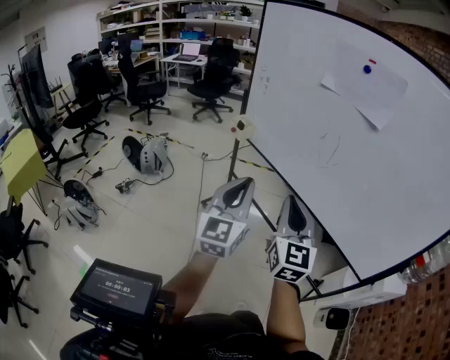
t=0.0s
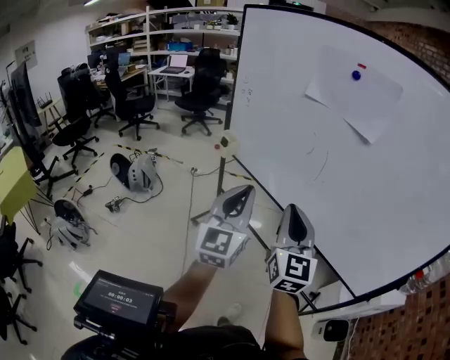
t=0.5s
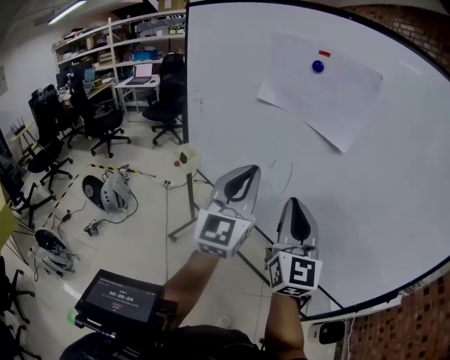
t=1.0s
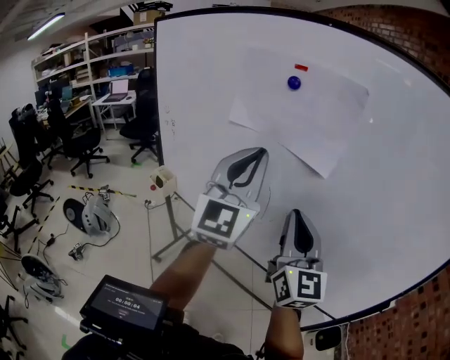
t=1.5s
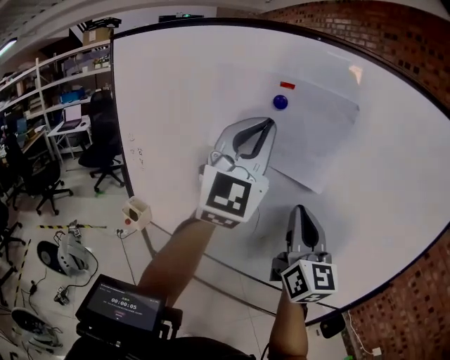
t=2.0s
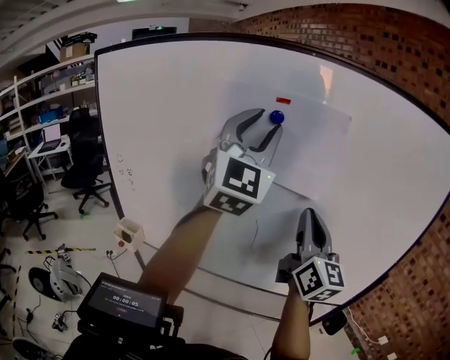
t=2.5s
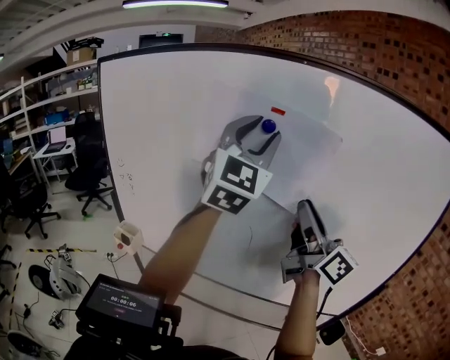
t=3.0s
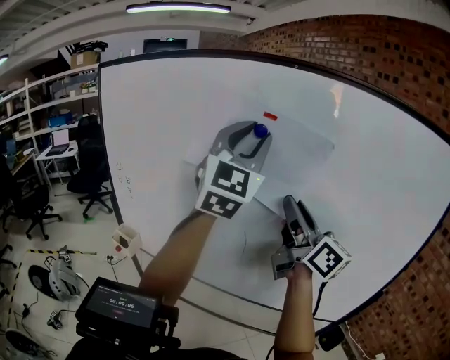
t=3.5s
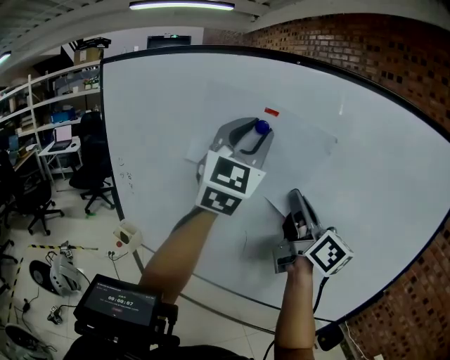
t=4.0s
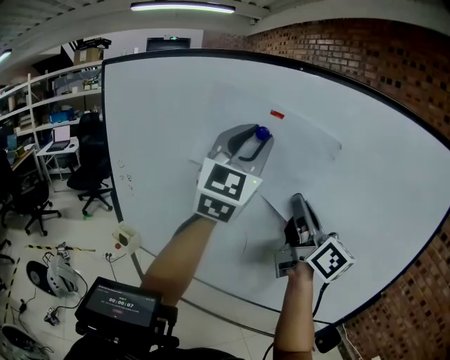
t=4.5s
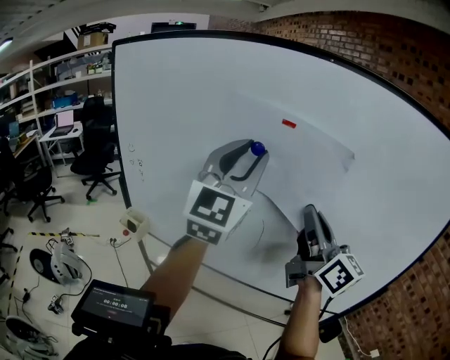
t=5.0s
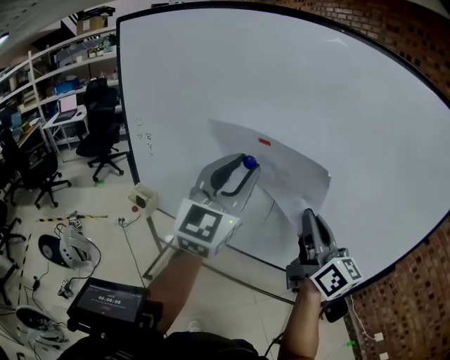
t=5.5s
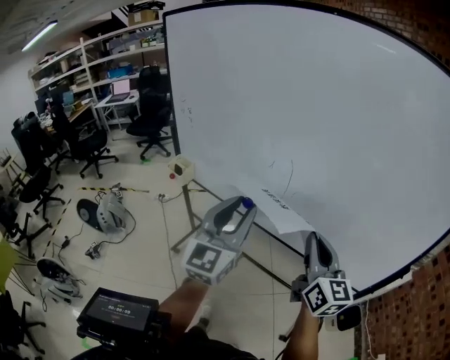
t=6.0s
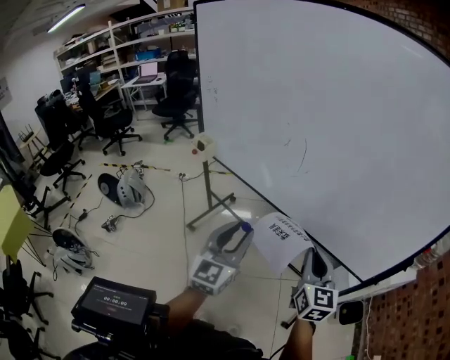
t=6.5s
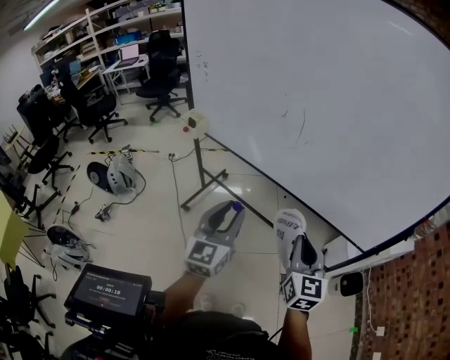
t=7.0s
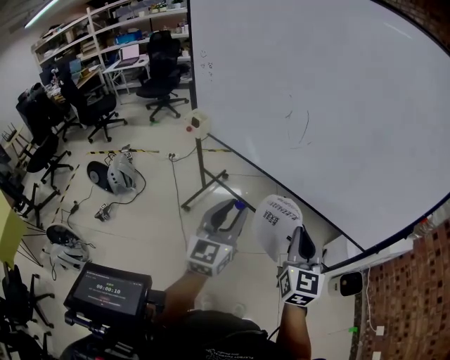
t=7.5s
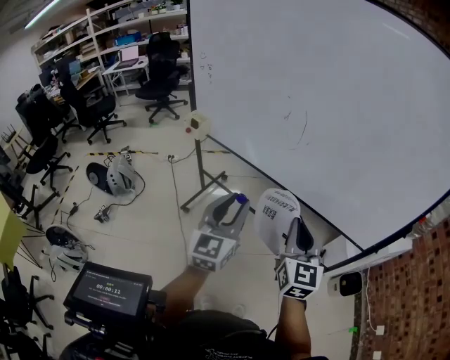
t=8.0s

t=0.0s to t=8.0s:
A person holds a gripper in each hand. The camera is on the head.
t=0.0s to t=2.0s: The left gripper ends up about 50 cm from where it was, and rotates roughly 40 degrees. The right gripper moves about 35 cm, and rotates about 20 degrees.
t=2.0s to t=4.0s: The left gripper moves approximately 5 cm, and opens its fingers. The right gripper shifts roughly 5 cm upward, rotates approximately 30 degrees, and opens, then closes again.
t=4.0s to t=6.0s: The grippers both shift downward and backward by about 30 cm. The left gripper rotates about 30 degrees. Meanwhile the right gripper turns by approximately 20 degrees.
t=6.0s to t=8.0s: The left gripper moves backward and downward, about 15 cm. The right gripper heads backward, downward and to the left, covering roughly 15 cm.

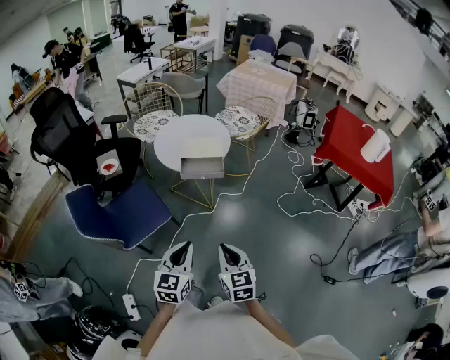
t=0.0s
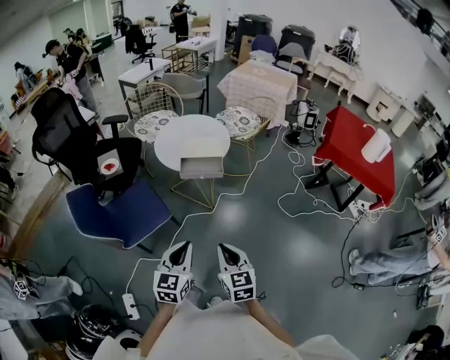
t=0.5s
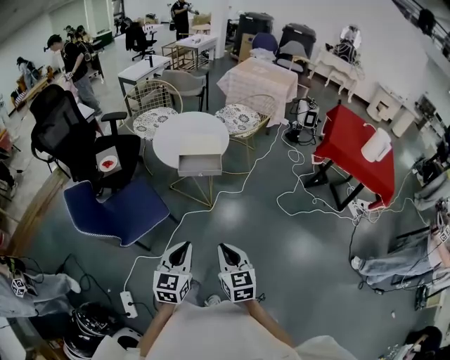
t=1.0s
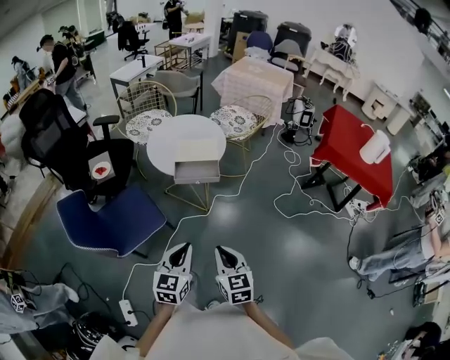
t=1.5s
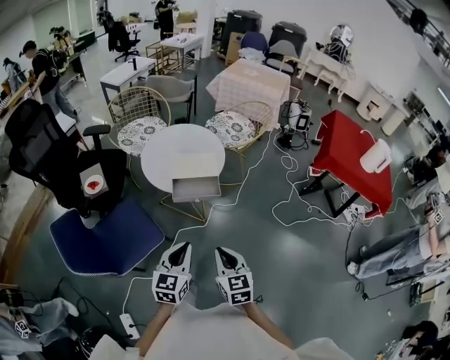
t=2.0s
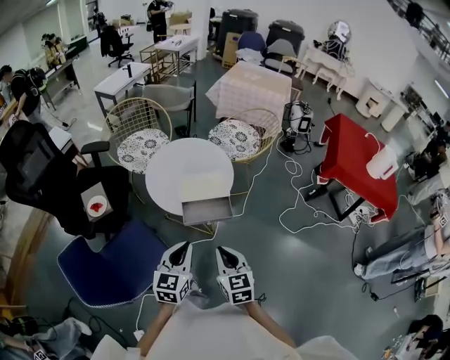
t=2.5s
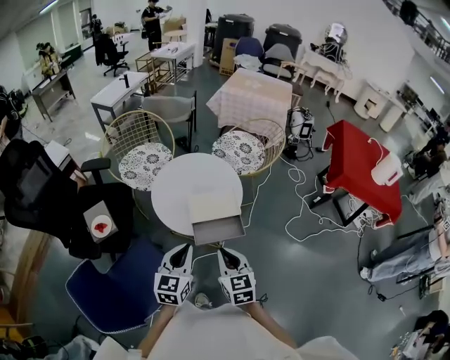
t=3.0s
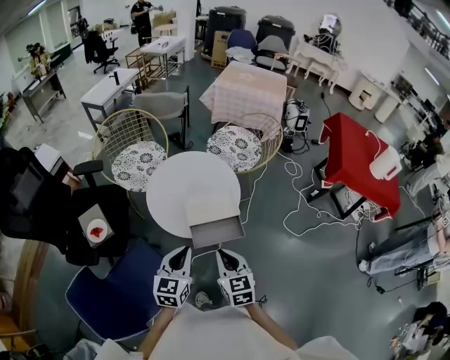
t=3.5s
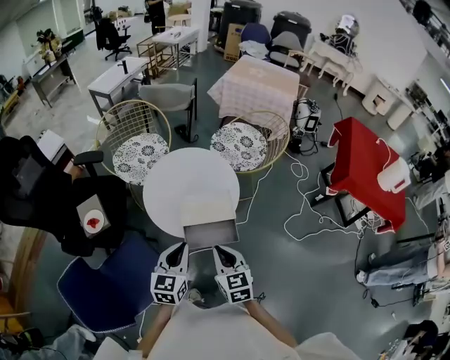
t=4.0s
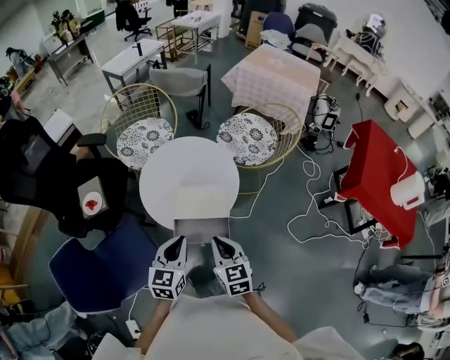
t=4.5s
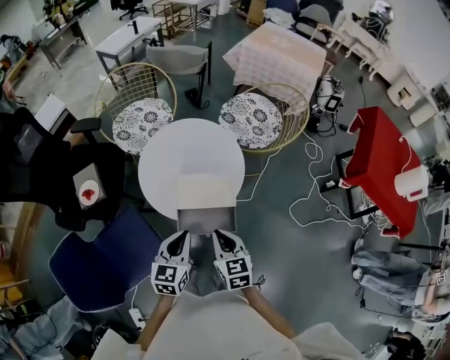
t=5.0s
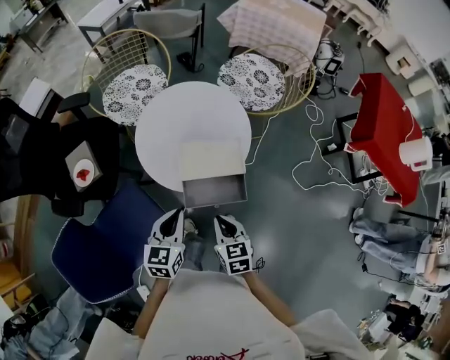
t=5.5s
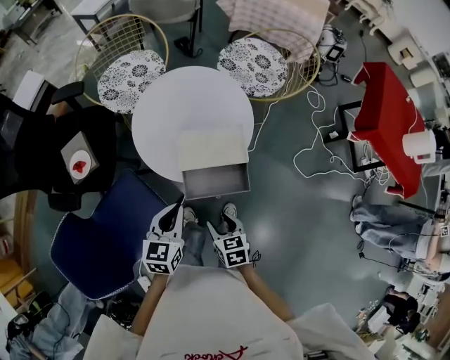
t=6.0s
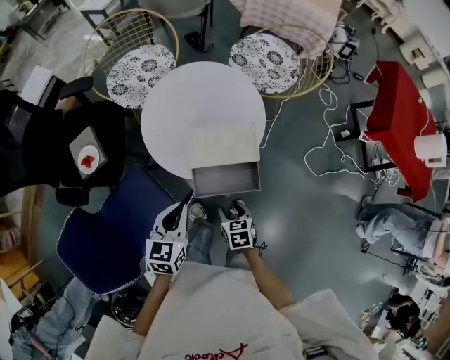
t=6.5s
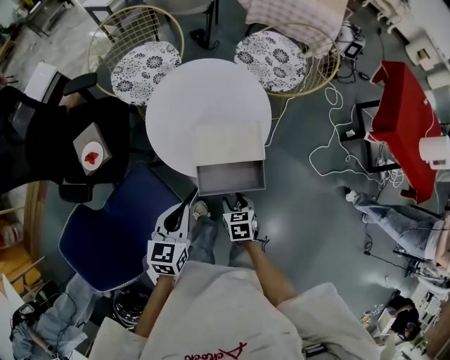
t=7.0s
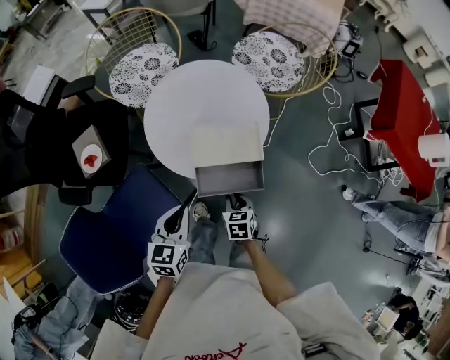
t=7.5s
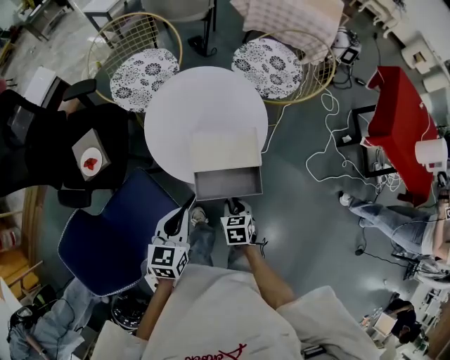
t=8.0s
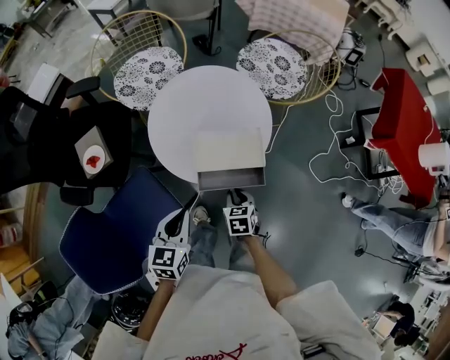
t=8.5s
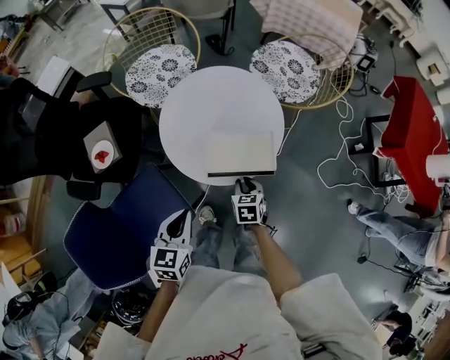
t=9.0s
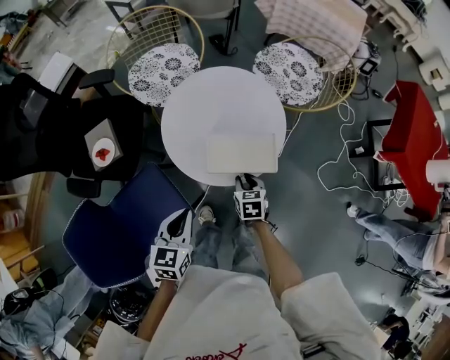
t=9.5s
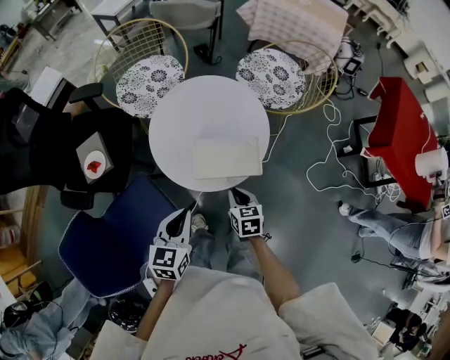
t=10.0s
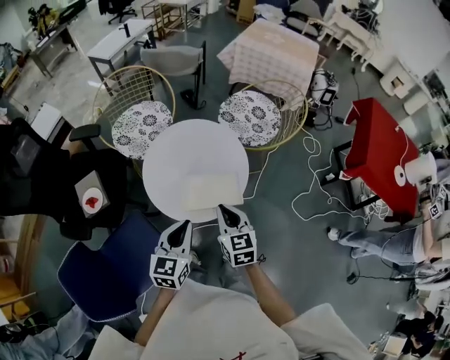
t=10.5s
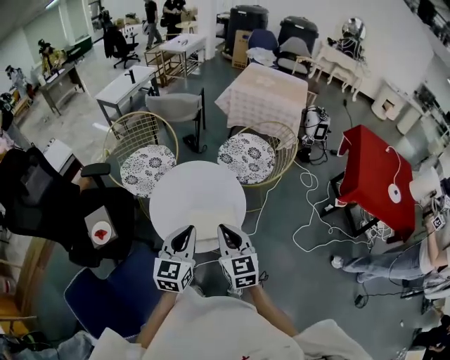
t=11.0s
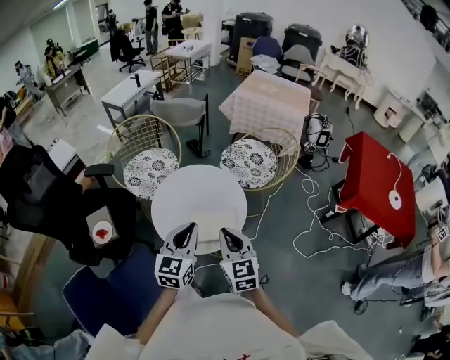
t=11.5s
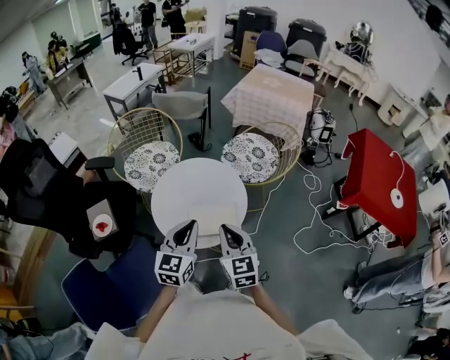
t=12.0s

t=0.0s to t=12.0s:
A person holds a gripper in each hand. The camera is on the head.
t=0.0s to t=2.0s: Both grippers move forward, some 15 cm.
t=2.0s to t=4.0s: The grippers both shift forward by about 25 cm.
t=4.0s to t=6.0s: The right gripper travels downward by about 20 cm, turns by roughly 30 degrees, and opens its fingers. Meanwhile the left gripper moves downward, some 10 cm.
t=6.0s to t=8.0s: The right gripper moves forward, about 5 cm, and closes its fingers.
t=8.0s to t=10.0s: The right gripper is displaced forward by roughly 5 cm.
t=10.0s to t=12.0s: The right gripper moves upward, roughly 25 cm, and points its fingers approximately 30 degrees further upward, while the left gripper goes some 20 cm upward, forward and to the right, and changes its angle by roughly 20 degrees.

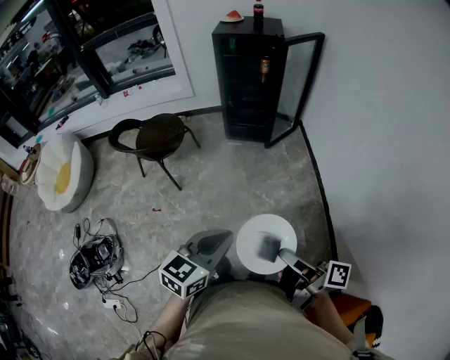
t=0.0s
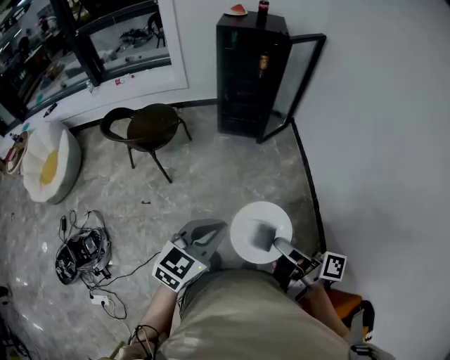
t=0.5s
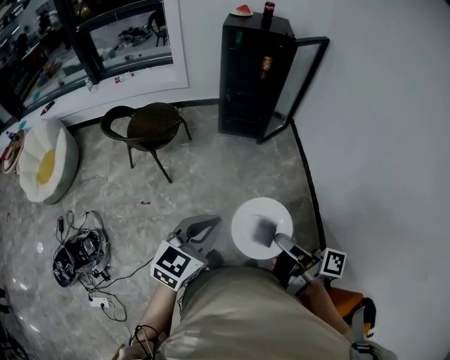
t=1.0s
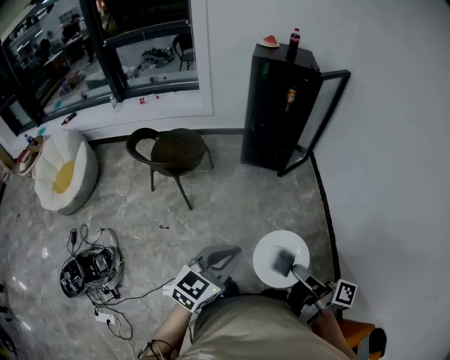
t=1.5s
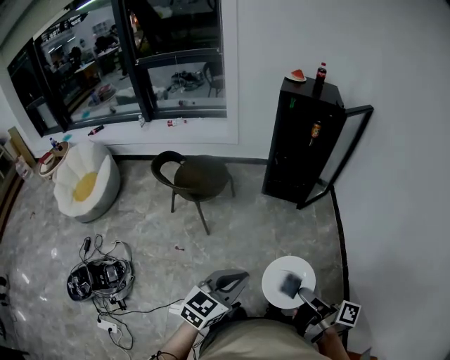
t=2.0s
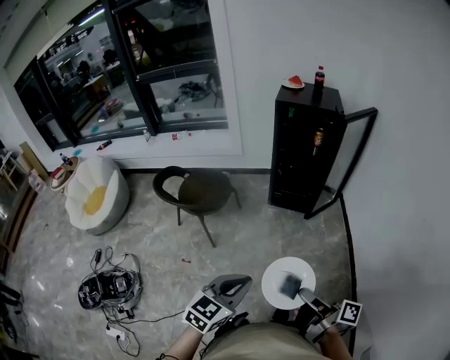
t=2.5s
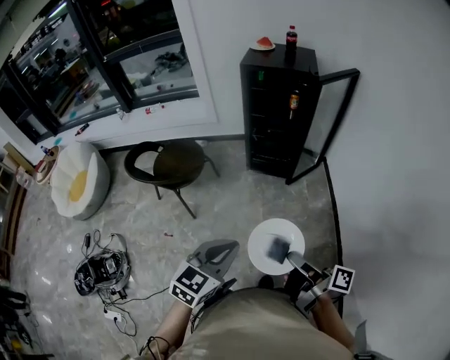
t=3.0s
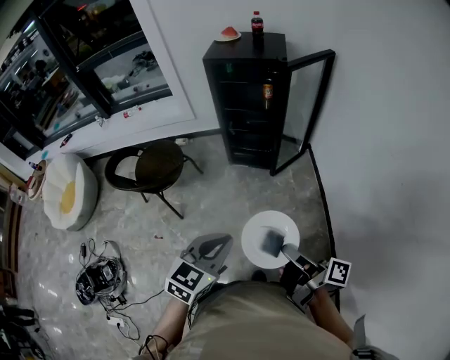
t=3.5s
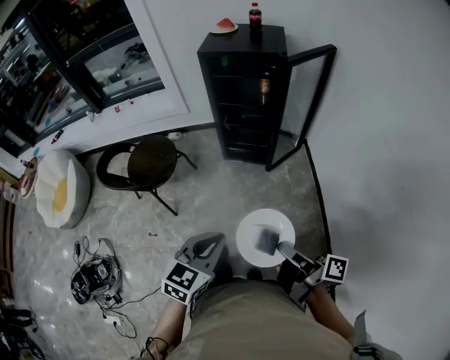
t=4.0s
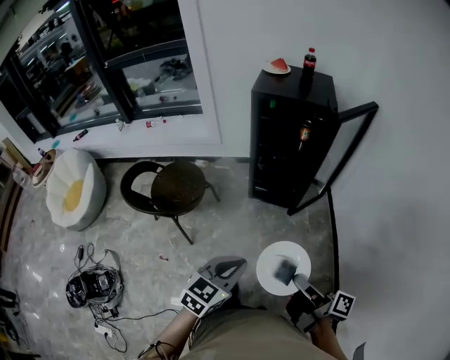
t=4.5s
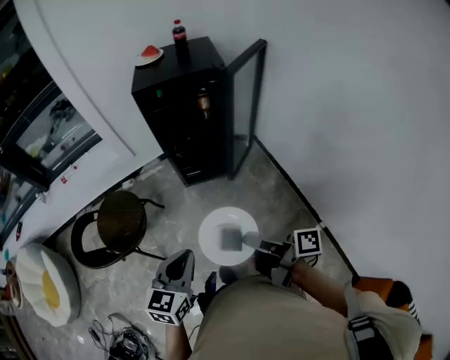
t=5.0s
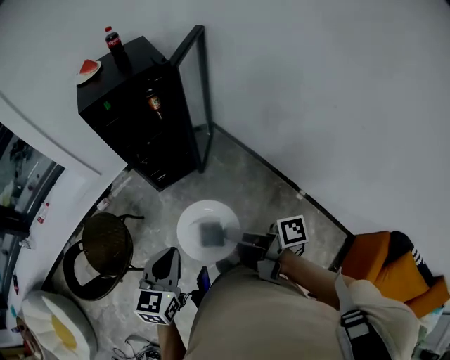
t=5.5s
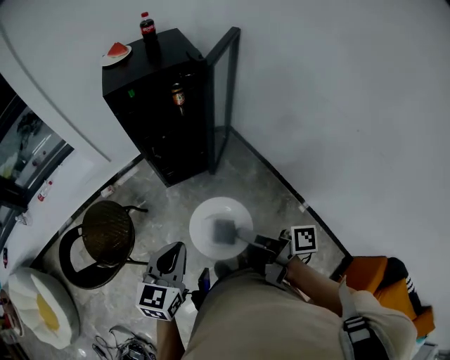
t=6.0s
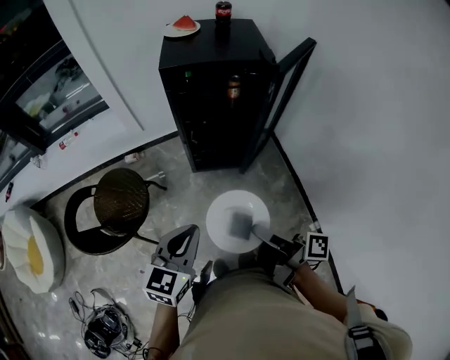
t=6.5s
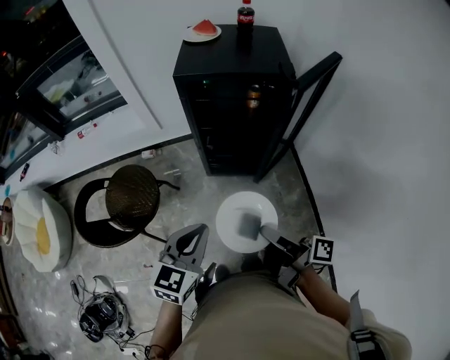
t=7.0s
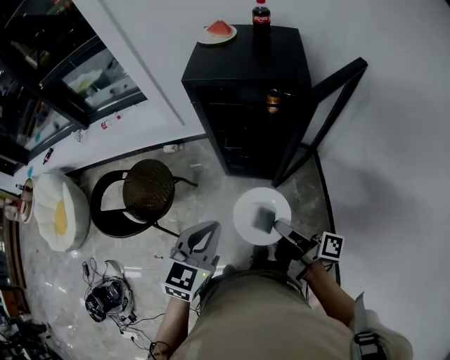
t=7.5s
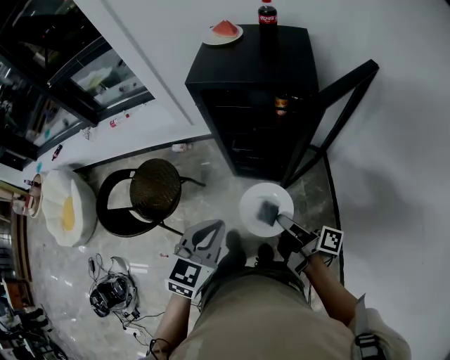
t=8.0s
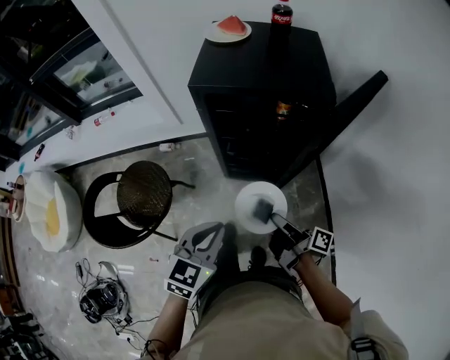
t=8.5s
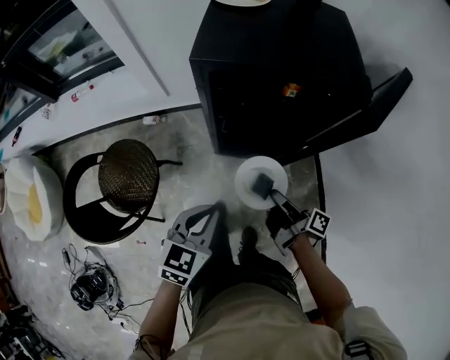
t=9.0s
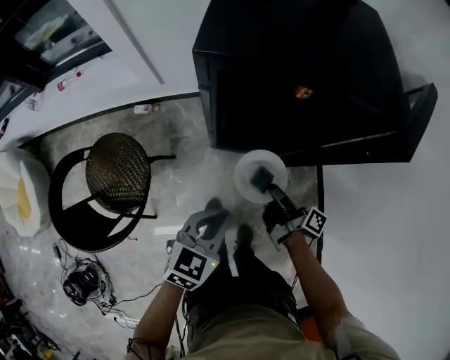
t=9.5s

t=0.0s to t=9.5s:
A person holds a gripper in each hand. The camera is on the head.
t=0.0s to t=2.0s: The left gripper changes place by some 15 cm.
t=2.0s to t=4.0s: The left gripper ends up some 25 cm from where it was.
t=4.0s to t=5.5s: The left gripper changes place by some 15 cm.
t=5.5s to t=7.5s: The left gripper ends up some 15 cm from where it was, and rotates some 20 degrees.
t=7.5s to t=9.5s: The left gripper shifts about 15 cm downward.
